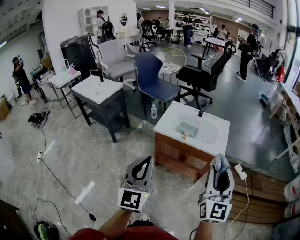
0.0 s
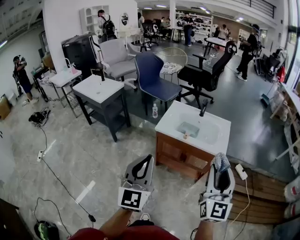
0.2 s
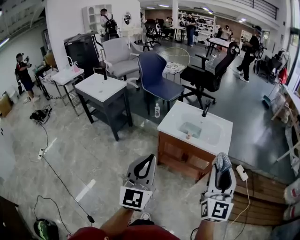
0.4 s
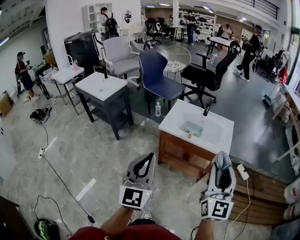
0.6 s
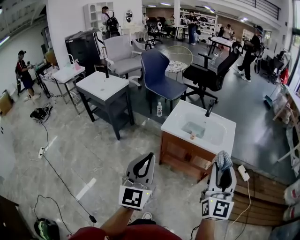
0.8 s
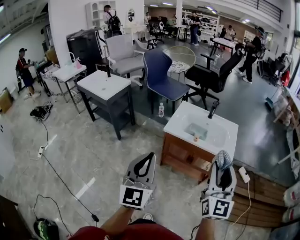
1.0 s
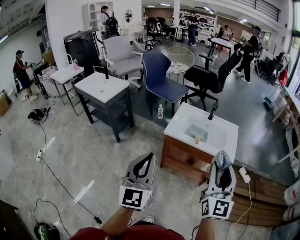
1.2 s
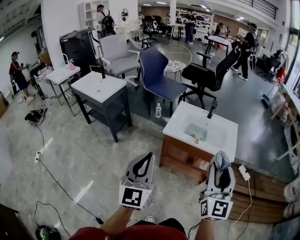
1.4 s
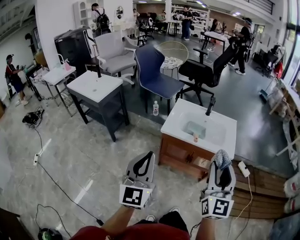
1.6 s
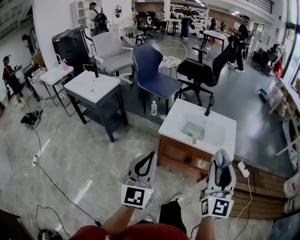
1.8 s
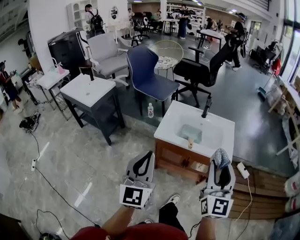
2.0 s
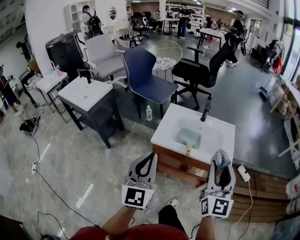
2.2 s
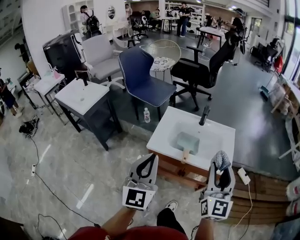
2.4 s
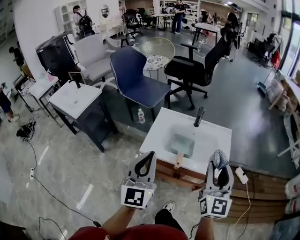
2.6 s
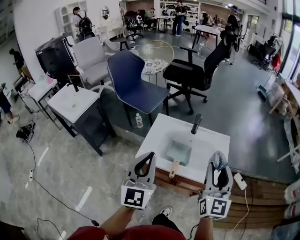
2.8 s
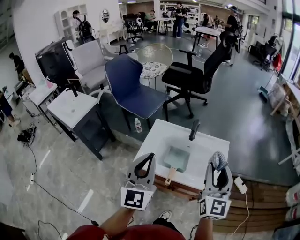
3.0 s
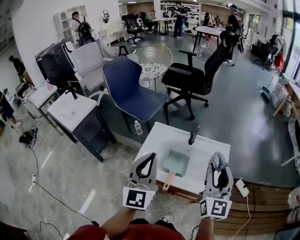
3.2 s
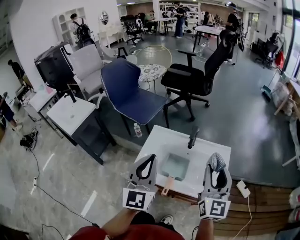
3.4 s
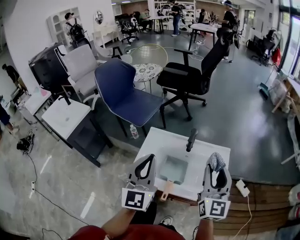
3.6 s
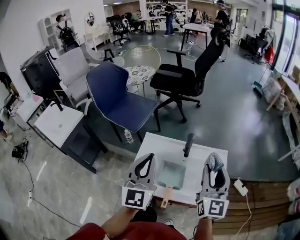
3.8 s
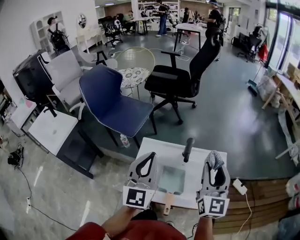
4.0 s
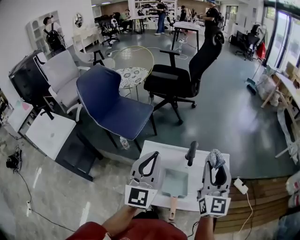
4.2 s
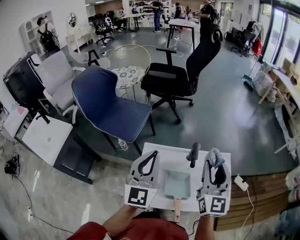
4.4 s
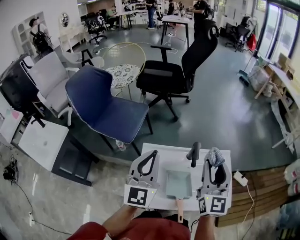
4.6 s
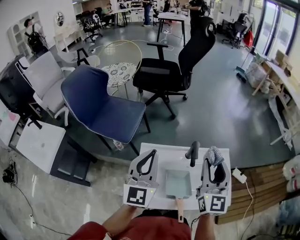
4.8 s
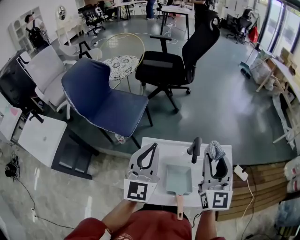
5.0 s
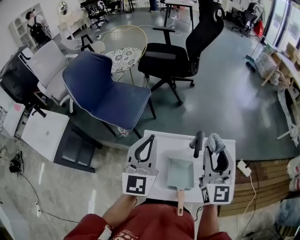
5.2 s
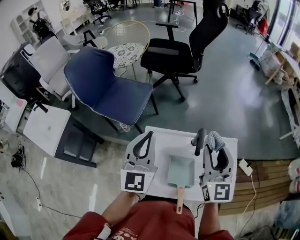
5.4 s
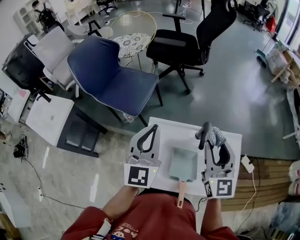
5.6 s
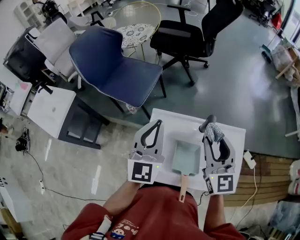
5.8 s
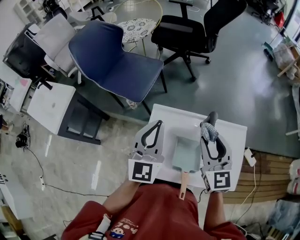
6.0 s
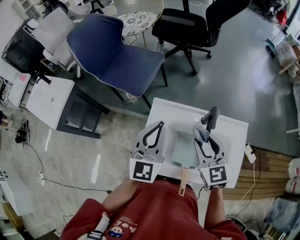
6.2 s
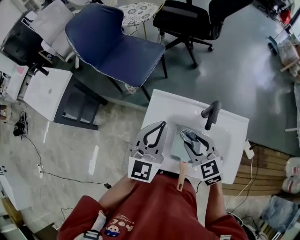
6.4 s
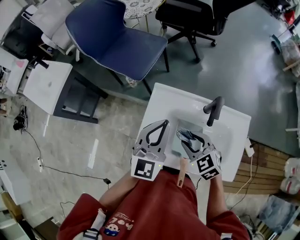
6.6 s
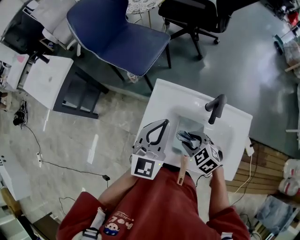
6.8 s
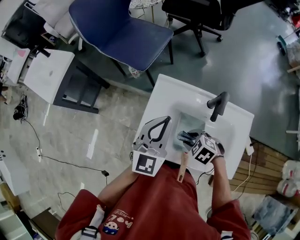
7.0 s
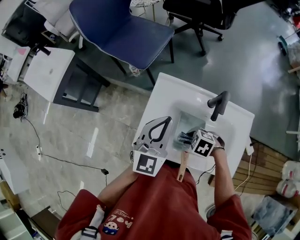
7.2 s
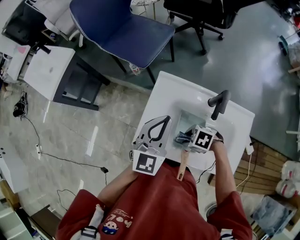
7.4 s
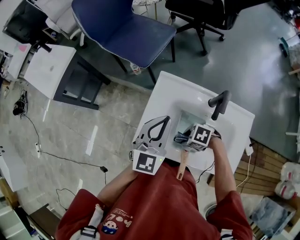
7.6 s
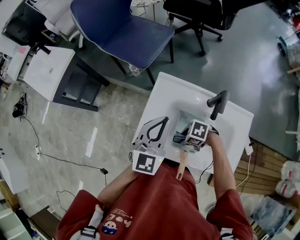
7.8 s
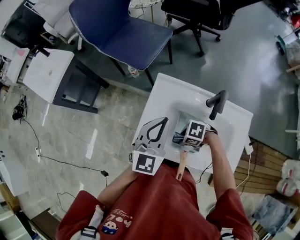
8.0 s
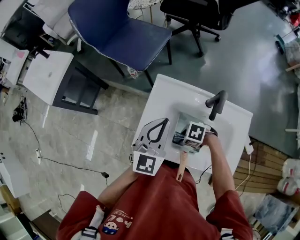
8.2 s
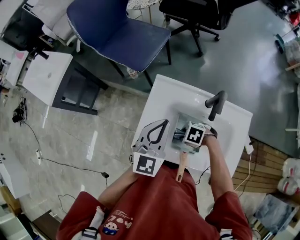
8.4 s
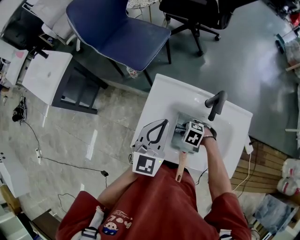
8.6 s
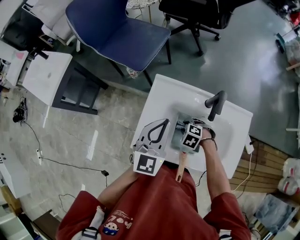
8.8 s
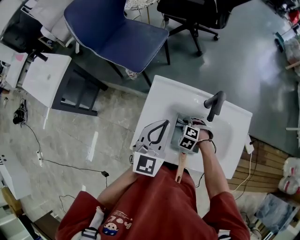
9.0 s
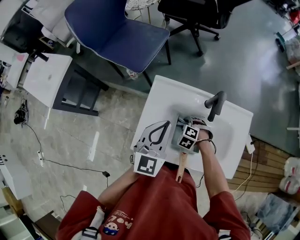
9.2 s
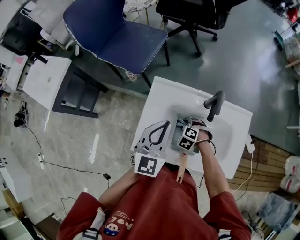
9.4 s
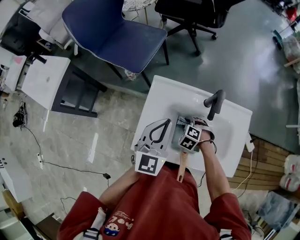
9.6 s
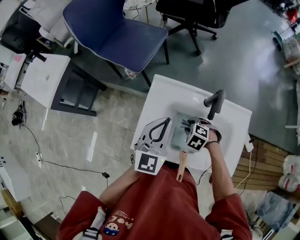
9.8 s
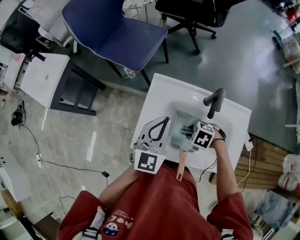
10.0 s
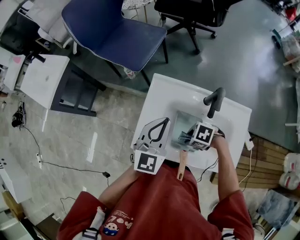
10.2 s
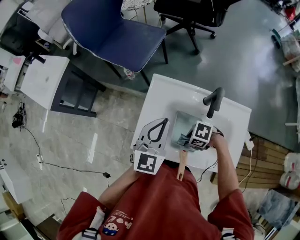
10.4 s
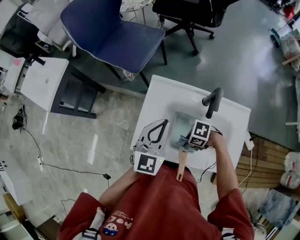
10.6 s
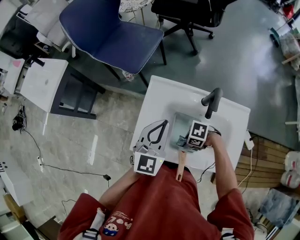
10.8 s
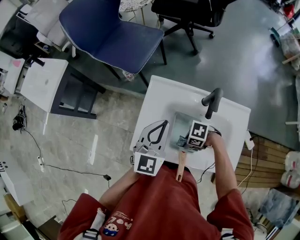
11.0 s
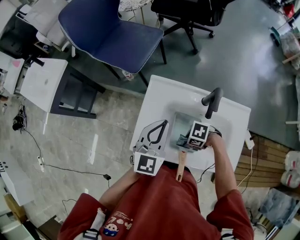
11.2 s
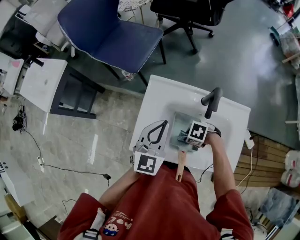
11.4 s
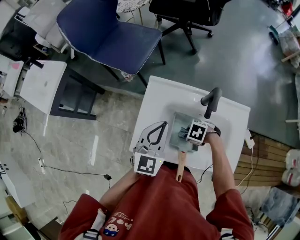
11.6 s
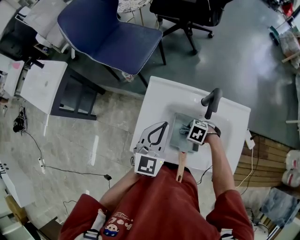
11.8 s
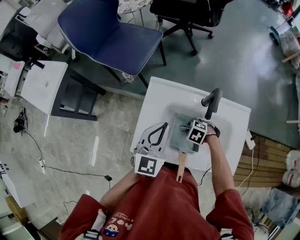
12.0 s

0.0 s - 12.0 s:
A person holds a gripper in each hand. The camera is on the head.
0.0 s - 1.6 s: The two grippers go roughly 10 cm to the left and forward.
1.6 s - 3.0 s: Both grippers travel together forward and to the right, approximately 35 cm.
3.0 s - 4.4 s: The left gripper shifts some 25 cm forward; the right gripper shifts about 20 cm forward and to the left.
4.4 s - 6.0 s: The left gripper goes about 5 cm downward, while the right gripper moves downward and to the left, approximately 10 cm, and swivels approximately 30 degrees.
6.0 s - 7.6 s: The right gripper is displaced downward by approximately 30 cm, and tips its fingers downward by some 50 degrees; the left gripper is displaced downward by approximately 10 cm.
7.6 s - 9.0 s: The right gripper moves some 10 cm, and changes its angle by some 40 degrees.
9.0 s - 10.4 s: The right gripper ends up approximately 10 cm from where it was, and rotates some 40 degrees.
10.4 s - 12.0 s: The right gripper changes place by approximately 10 cm, and changes its angle by roughly 30 degrees.

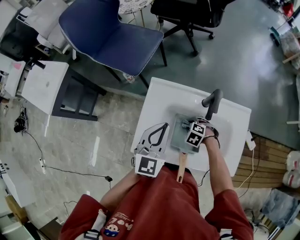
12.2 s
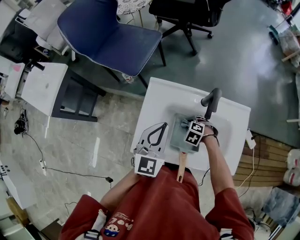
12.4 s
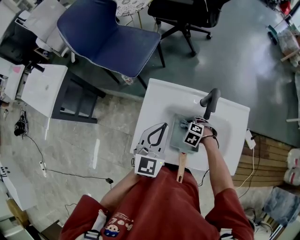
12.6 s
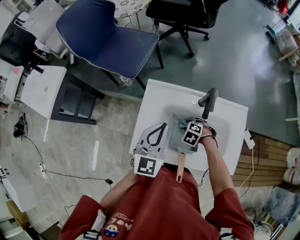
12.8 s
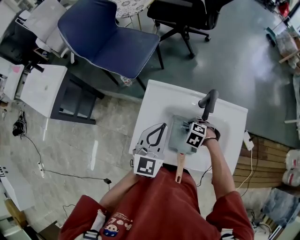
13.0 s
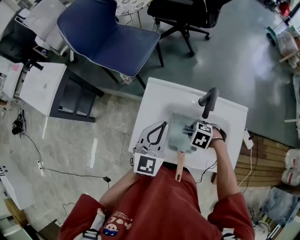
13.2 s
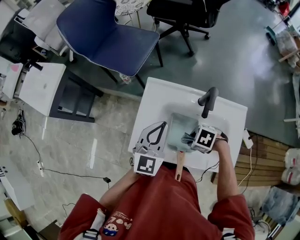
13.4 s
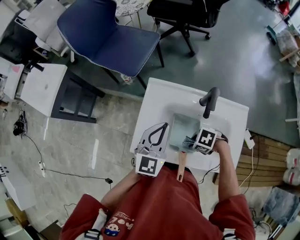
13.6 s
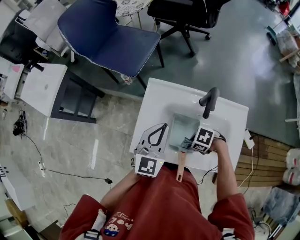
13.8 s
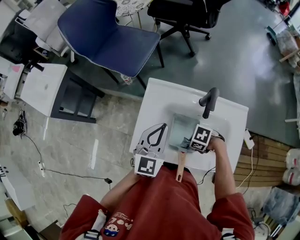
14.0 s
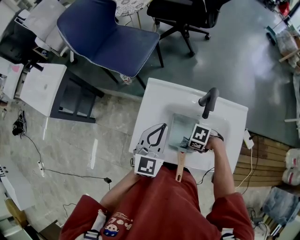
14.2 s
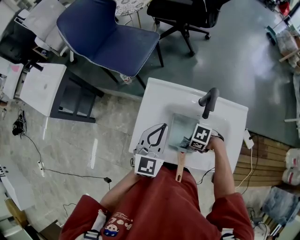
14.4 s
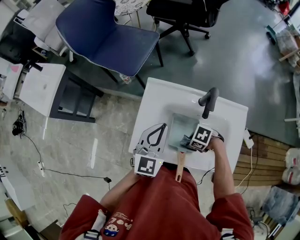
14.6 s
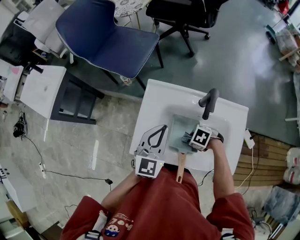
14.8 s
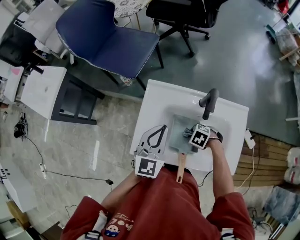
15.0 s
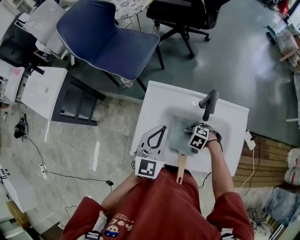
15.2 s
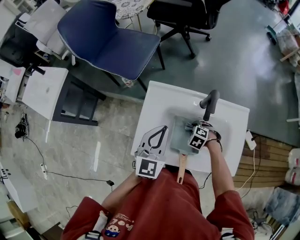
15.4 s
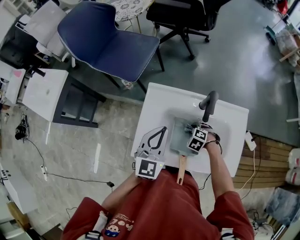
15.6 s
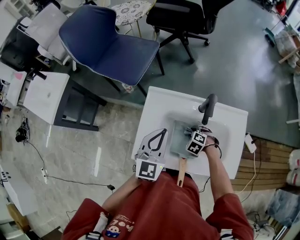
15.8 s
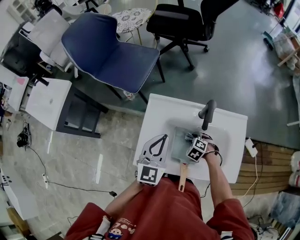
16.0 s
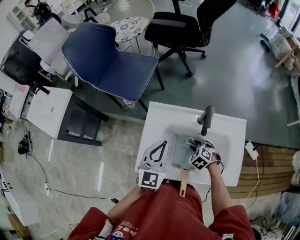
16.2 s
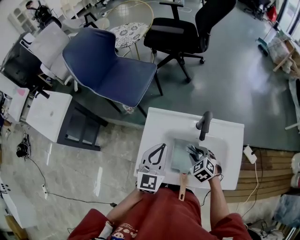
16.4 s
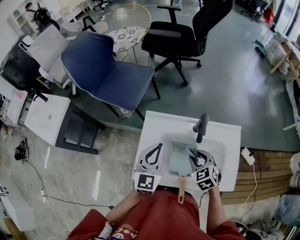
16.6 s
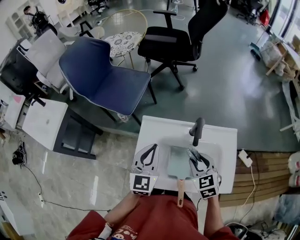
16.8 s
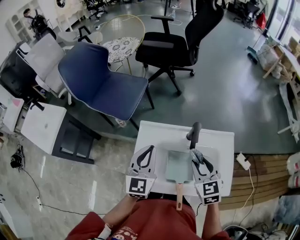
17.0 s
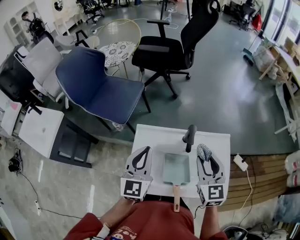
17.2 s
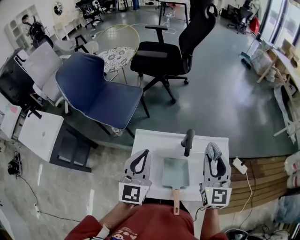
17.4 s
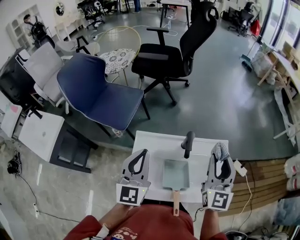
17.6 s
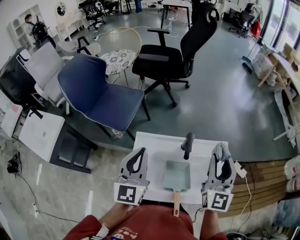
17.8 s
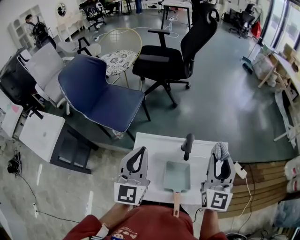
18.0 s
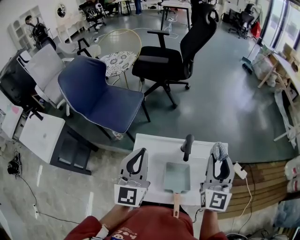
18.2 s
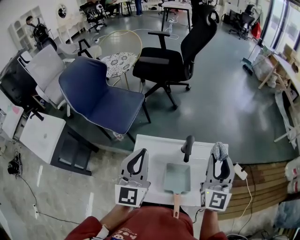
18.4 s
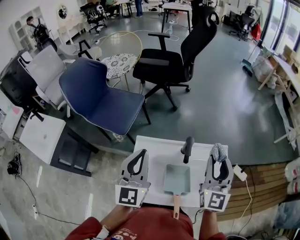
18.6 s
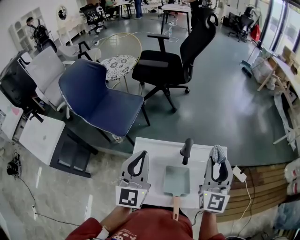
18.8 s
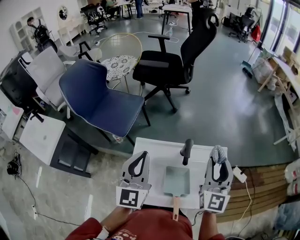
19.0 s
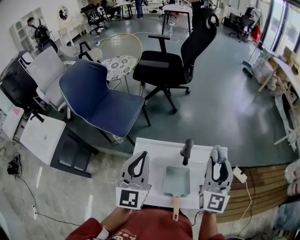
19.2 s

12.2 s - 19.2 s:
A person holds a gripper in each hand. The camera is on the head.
12.2 s - 13.6 s: The right gripper shifts by about 10 cm, and changes its angle by about 30 degrees.
13.6 s - 15.0 s: The right gripper goes some 5 cm downward.
15.0 s - 16.4 s: The right gripper goes roughly 10 cm upward, and swivels approximately 40 degrees.
16.4 s - 17.8 s: The right gripper moves upward, roughly 30 cm, and points its fingers some 60 degrees further upward. The left gripper heads upward, covering about 15 cm.
17.8 s - 19.2 s: The grippers stay close to where they were, moving slightly.

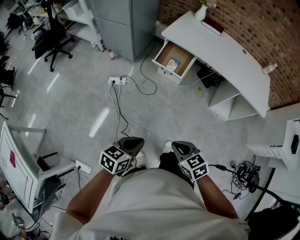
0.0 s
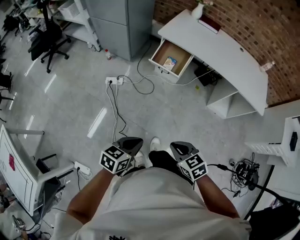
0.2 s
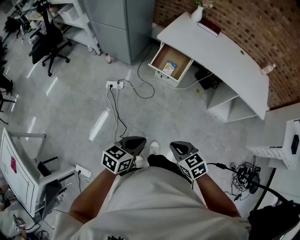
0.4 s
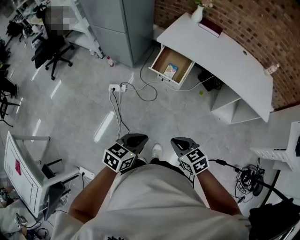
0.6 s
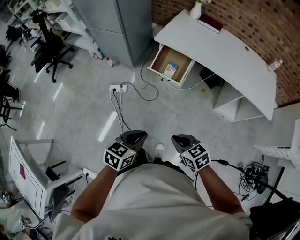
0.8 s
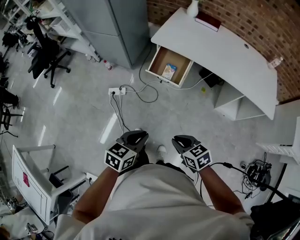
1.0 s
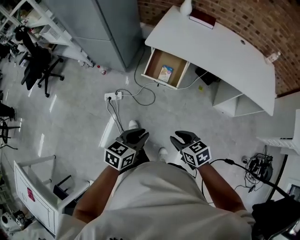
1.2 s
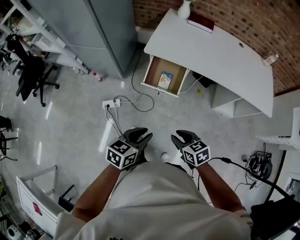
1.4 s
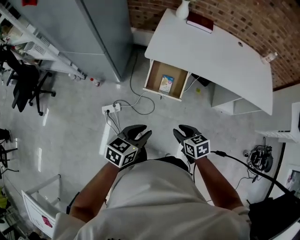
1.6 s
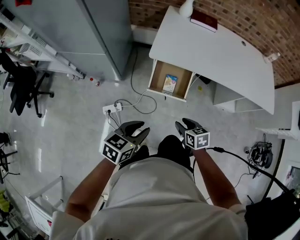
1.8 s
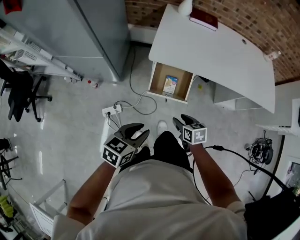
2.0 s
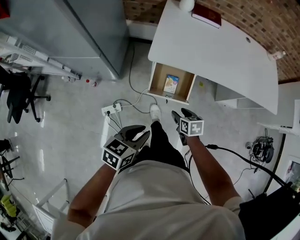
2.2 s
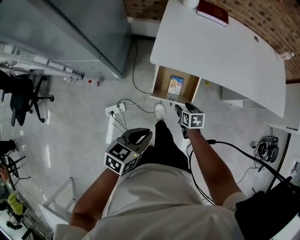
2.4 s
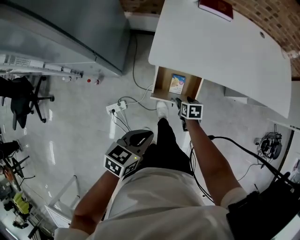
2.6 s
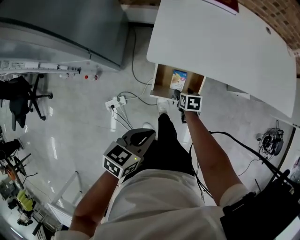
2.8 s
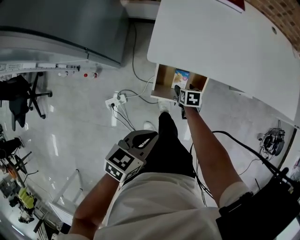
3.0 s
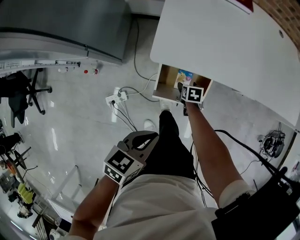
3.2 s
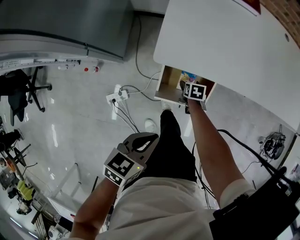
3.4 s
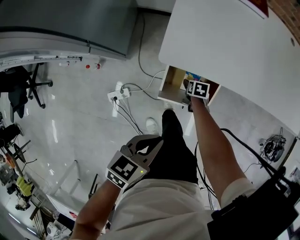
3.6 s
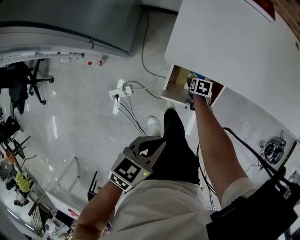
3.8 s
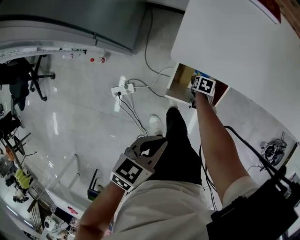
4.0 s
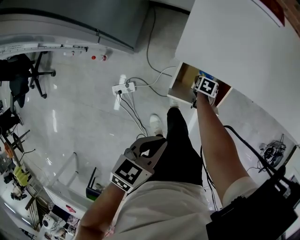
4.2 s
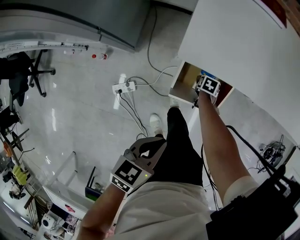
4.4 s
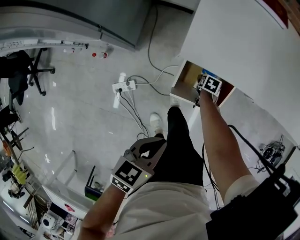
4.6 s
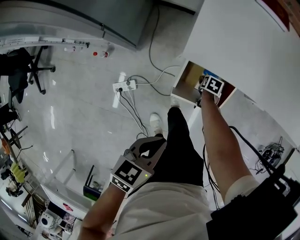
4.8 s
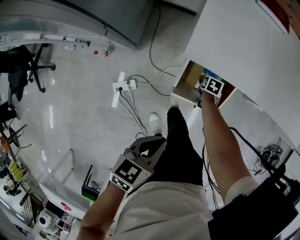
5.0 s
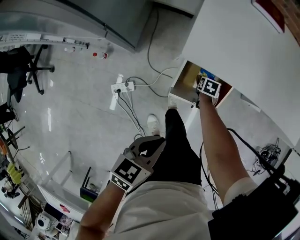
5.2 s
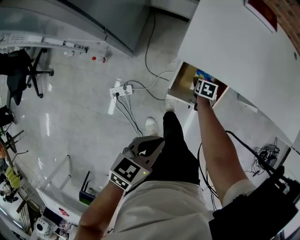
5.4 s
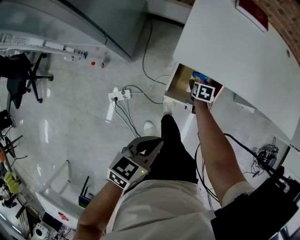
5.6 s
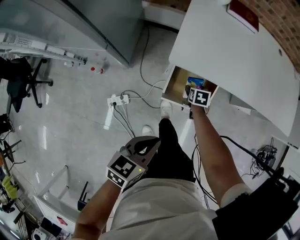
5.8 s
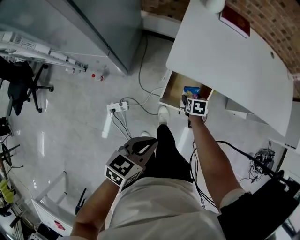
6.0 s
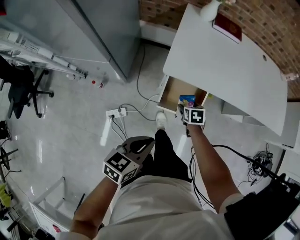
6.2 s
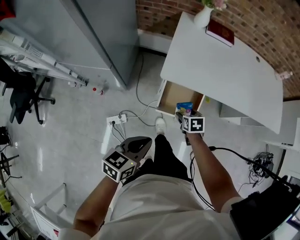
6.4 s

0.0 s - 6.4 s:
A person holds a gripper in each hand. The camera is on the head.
0.0 s - 1.6 s: The two grippers travel together, forward, approximately 40 cm. The right gripper rotates some 30 degrees.
1.6 s - 3.2 s: The right gripper is displaced forward and downward by about 50 cm, rotates some 40 degrees, and opens its fingers. Meanwhile the left gripper goes about 30 cm forward and downward.
3.2 s - 4.8 s: The right gripper is displaced downward by about 10 cm; the left gripper travels downward by roughly 5 cm.
4.8 s - 6.4 s: The right gripper goes approximately 30 cm upward, and rotates approximately 30 degrees; the left gripper shifts approximately 15 cm upward.
